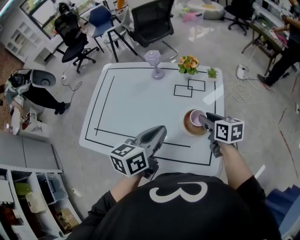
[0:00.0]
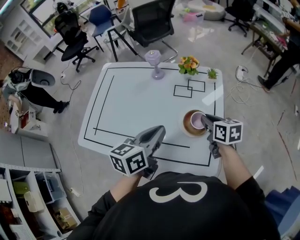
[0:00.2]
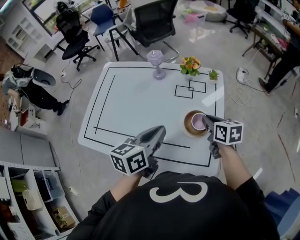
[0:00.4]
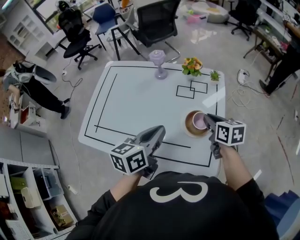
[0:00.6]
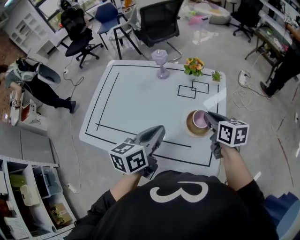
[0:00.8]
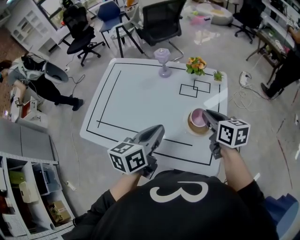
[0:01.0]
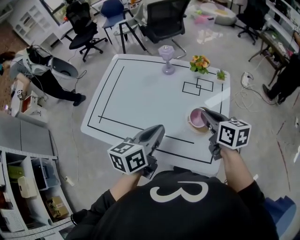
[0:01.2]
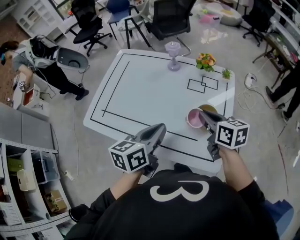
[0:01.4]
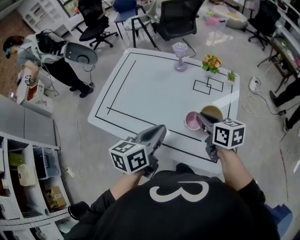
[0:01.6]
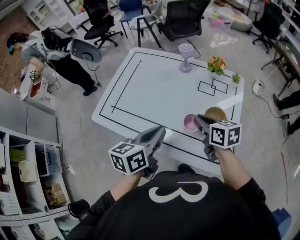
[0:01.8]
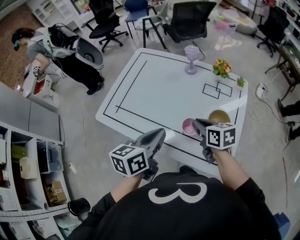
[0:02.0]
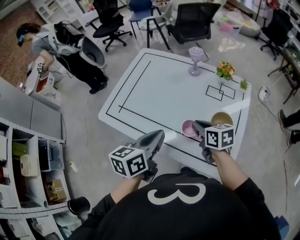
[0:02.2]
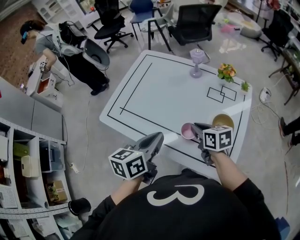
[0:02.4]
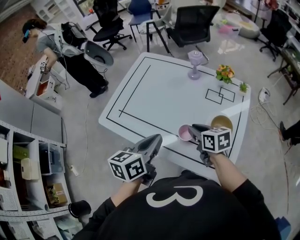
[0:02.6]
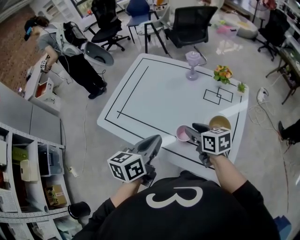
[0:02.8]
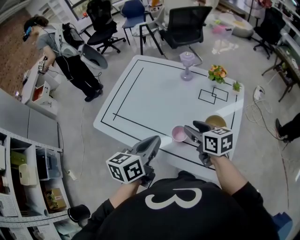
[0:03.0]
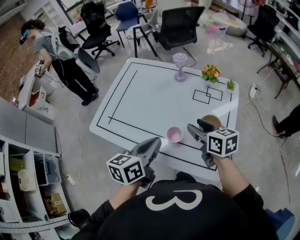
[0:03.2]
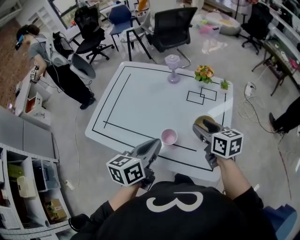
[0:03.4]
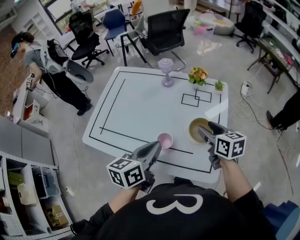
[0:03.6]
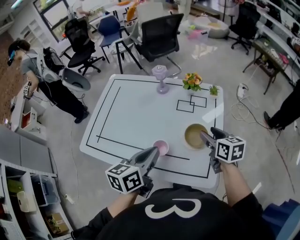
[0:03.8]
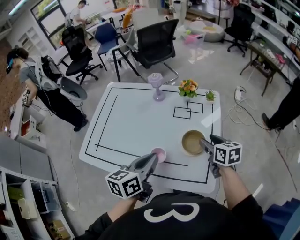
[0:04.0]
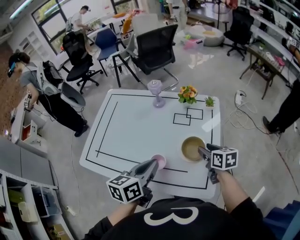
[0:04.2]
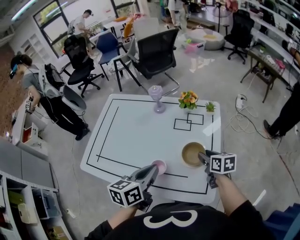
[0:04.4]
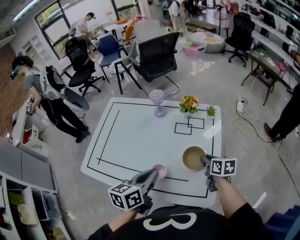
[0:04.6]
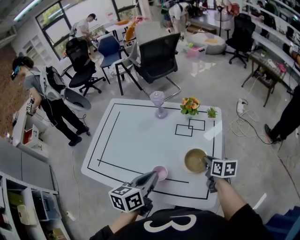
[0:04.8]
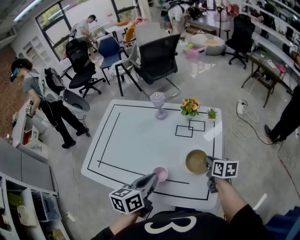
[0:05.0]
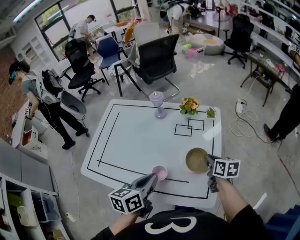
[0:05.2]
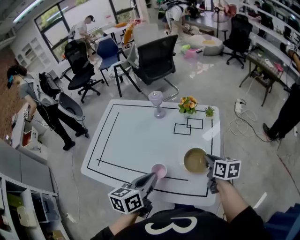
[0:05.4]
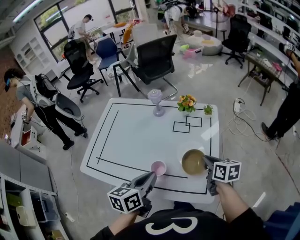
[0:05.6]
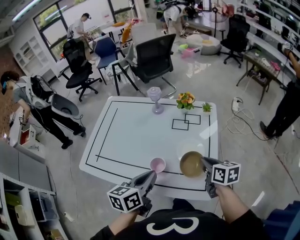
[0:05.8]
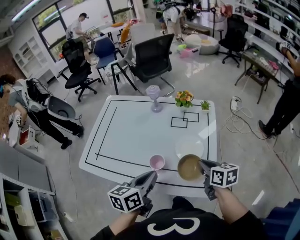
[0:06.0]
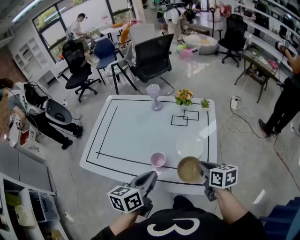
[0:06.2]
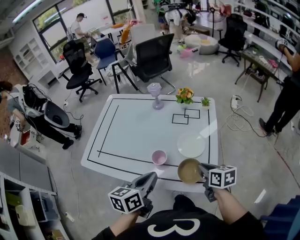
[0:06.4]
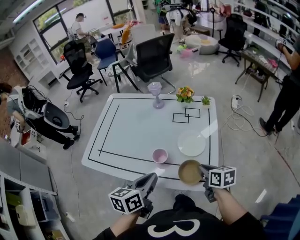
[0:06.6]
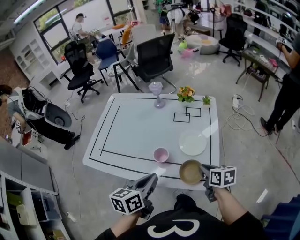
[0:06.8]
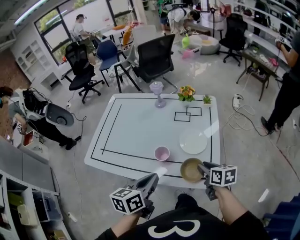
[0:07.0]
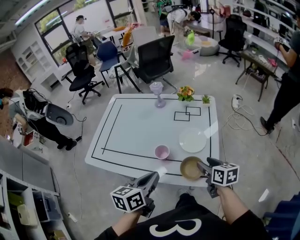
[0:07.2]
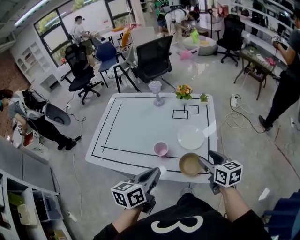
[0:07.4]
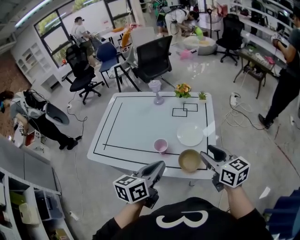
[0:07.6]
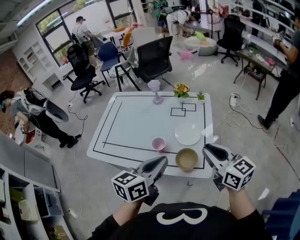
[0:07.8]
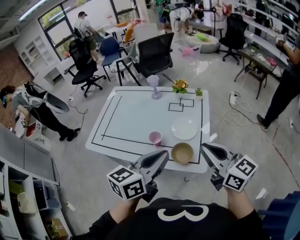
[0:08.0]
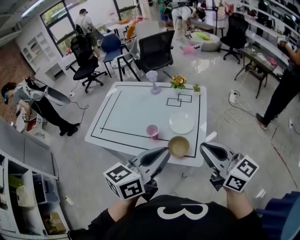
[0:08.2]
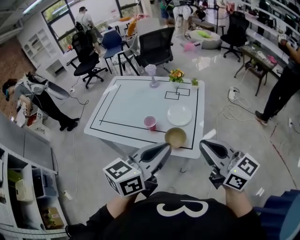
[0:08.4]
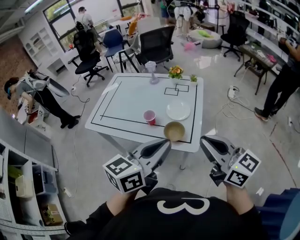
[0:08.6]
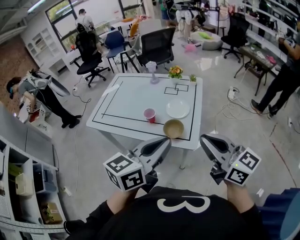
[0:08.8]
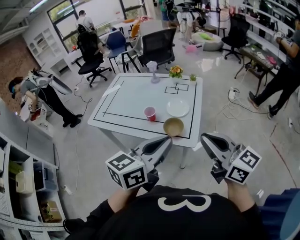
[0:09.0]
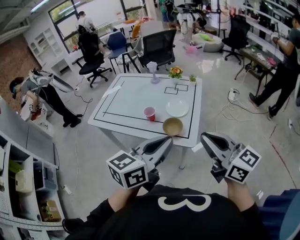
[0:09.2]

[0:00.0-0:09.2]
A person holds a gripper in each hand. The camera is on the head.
0:00.0 to 0:01.6: The right gripper moves to the left, approximately 10 cm, and closes, while the left gripper heads to the left, covering roughly 5 cm.
0:01.6 to 0:03.0: The right gripper travels to the left by roughly 5 cm, and opens its fingers.
0:03.0 to 0:04.6: The left gripper travels to the right by about 10 cm. Meanwhile the right gripper moves to the right and downward, approximately 20 cm, changes its angle by approximately 30 degrees, and closes.
0:04.6 to 0:06.2: The left gripper heads backward, covering about 5 cm; the right gripper heads backward, covering approximately 10 cm.
0:06.2 to 0:07.6: The right gripper goes approximately 10 cm upward and backward, swivels about 20 degrees, and opens; the left gripper ends up some 5 cm from where it was.
0:07.6 to 0:09.2: The right gripper shifts approximately 25 cm backward and upward, turns by approximately 20 degrees, and closes its fingers; the left gripper goes about 25 cm backward, to the right and upward.

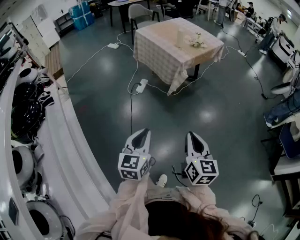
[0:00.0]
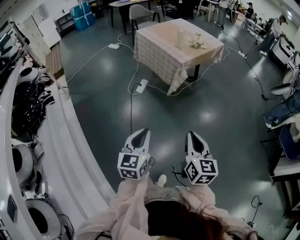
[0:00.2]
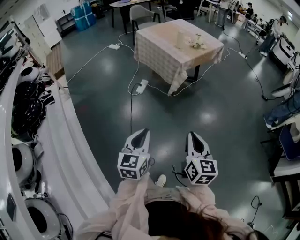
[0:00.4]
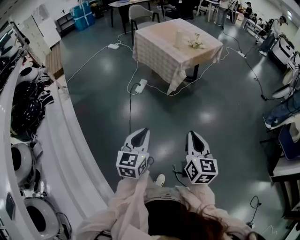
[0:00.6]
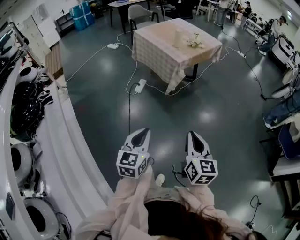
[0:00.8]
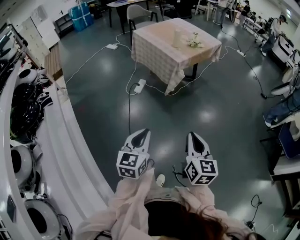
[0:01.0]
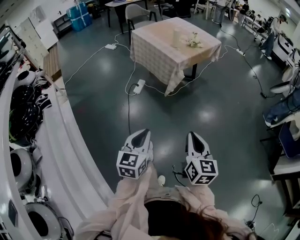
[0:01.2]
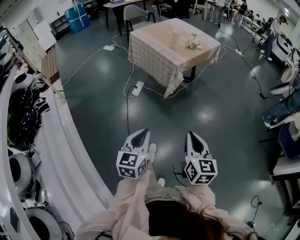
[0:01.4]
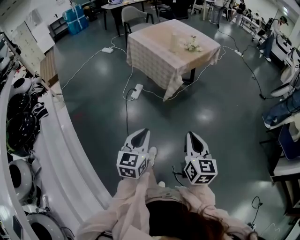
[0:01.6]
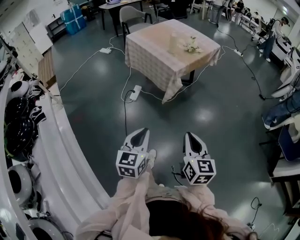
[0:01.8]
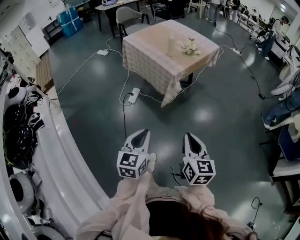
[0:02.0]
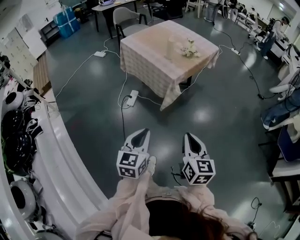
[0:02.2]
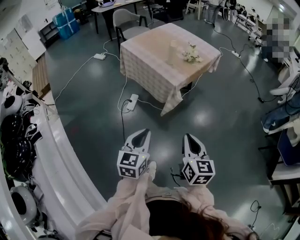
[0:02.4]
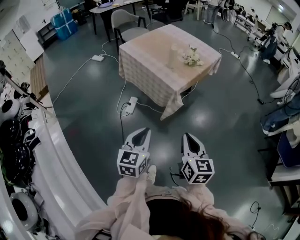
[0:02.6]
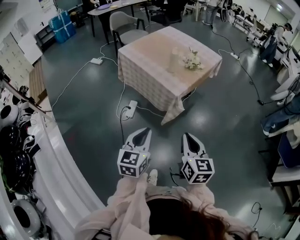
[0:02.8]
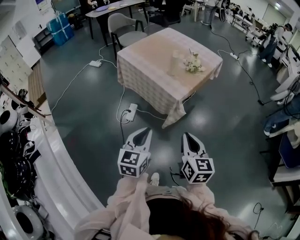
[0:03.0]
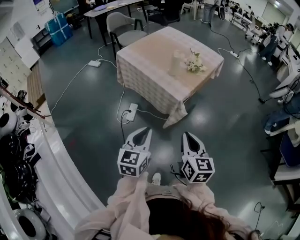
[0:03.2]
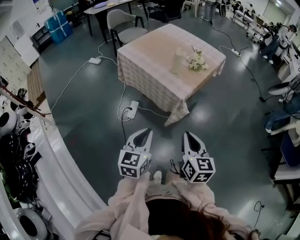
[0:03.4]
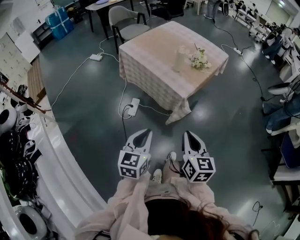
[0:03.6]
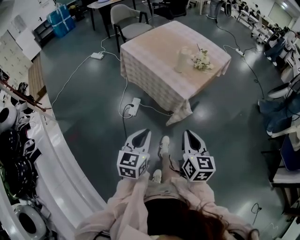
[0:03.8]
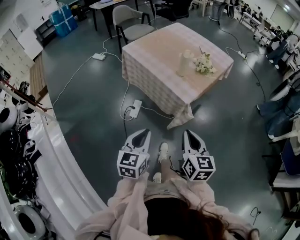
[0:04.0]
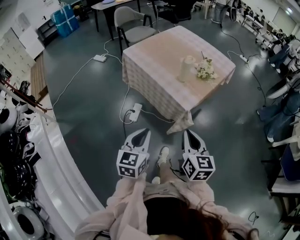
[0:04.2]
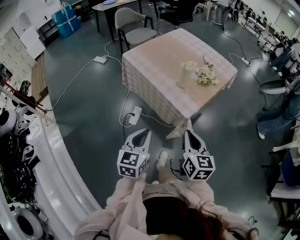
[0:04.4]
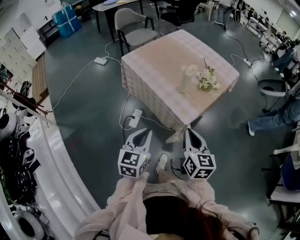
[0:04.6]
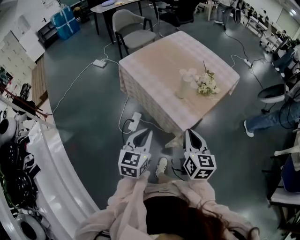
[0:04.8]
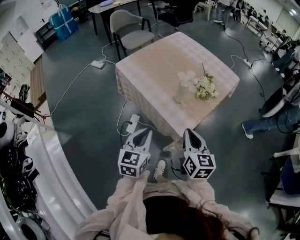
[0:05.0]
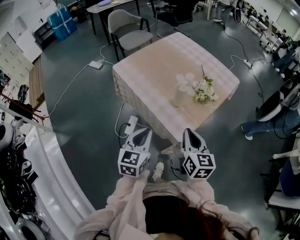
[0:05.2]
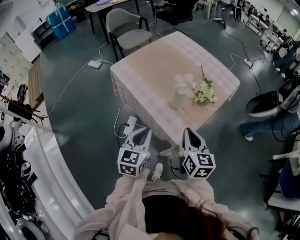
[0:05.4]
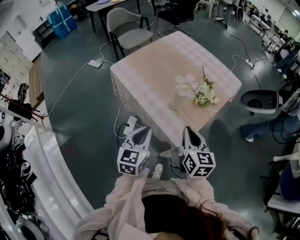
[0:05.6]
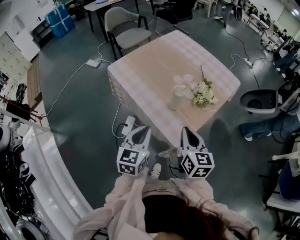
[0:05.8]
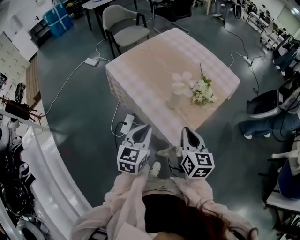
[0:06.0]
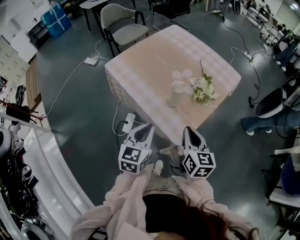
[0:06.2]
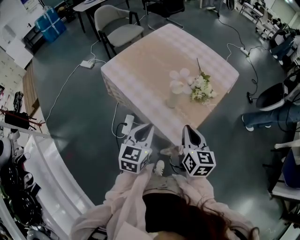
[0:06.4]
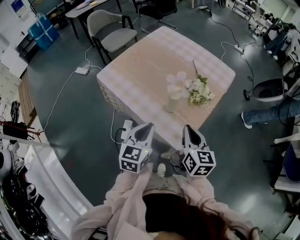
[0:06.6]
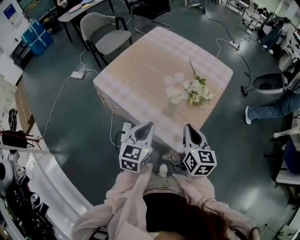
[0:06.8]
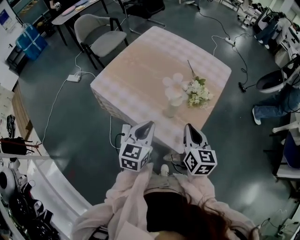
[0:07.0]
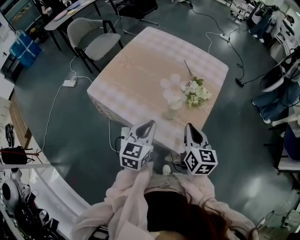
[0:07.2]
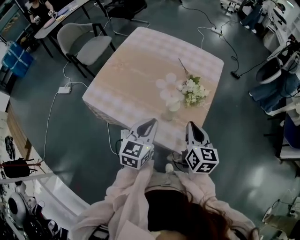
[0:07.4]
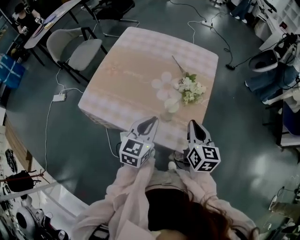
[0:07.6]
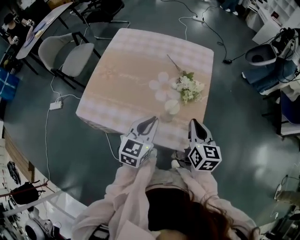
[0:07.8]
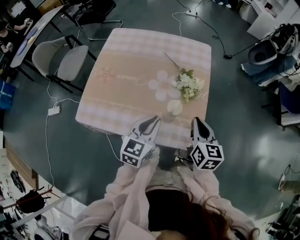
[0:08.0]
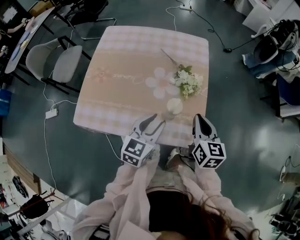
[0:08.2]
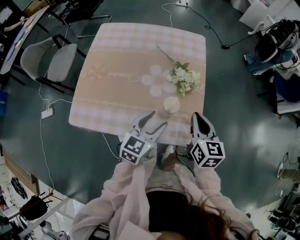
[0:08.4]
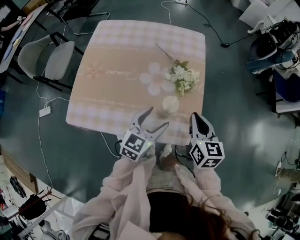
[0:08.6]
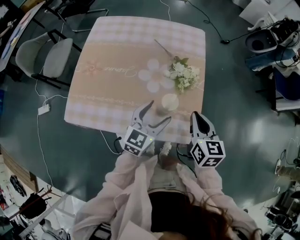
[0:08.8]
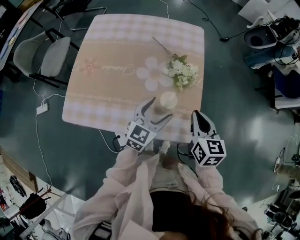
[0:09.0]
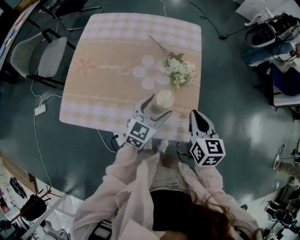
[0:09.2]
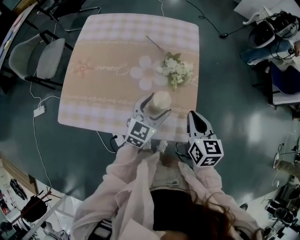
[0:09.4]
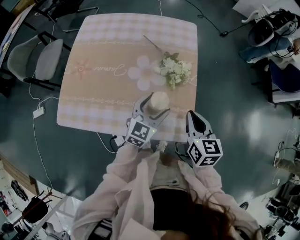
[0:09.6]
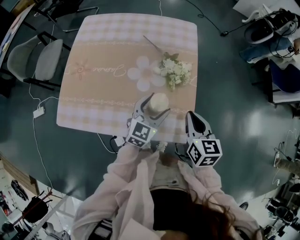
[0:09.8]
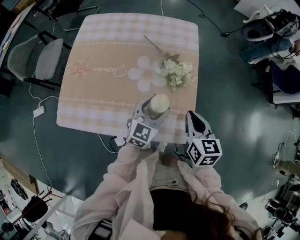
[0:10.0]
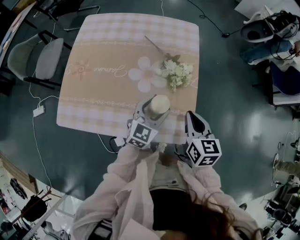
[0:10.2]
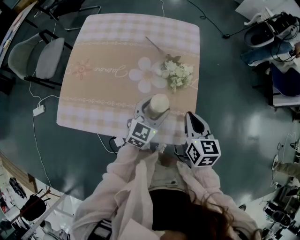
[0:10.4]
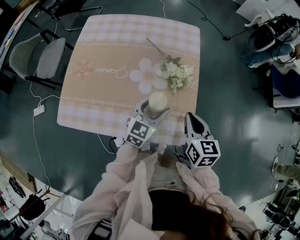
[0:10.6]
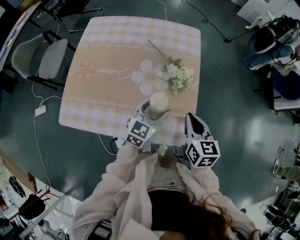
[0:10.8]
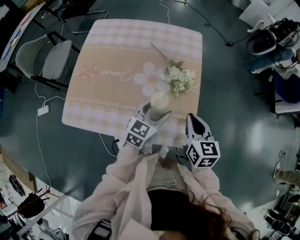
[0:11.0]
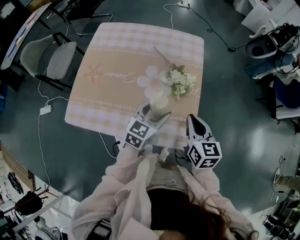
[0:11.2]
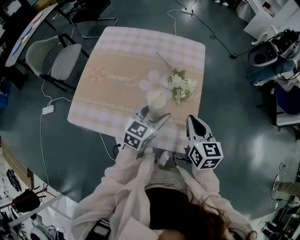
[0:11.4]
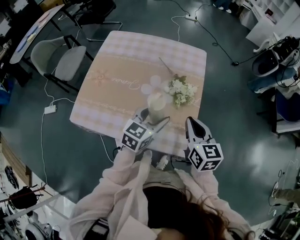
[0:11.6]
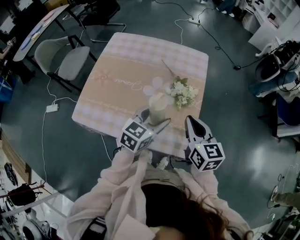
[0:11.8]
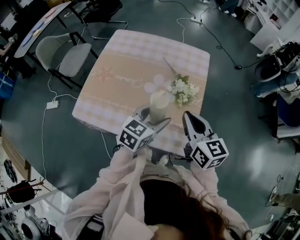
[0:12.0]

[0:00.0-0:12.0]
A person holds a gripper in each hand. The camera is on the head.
0:00.0 to 0:01.6: Both grippers move forward, roughly 10 cm.
0:01.6 to 0:03.0: Both grippers travel together forward, roughly 30 cm.
0:03.0 to 0:04.4: Both grippers move forward, about 15 cm.
0:04.4 to 0:06.0: The two grippers go about 20 cm forward.
0:06.0 to 0:07.6: The right gripper moves some 10 cm, and turns by approximately 30 degrees; the left gripper ends up approximately 15 cm from where it was, and rotates roughly 30 degrees.
0:07.6 to 0:09.0: The left gripper shifts approximately 10 cm downward and forward, turns by roughly 20 degrees, and opens.
0:09.0 to 0:10.4: The grippers stay close to where they were, moving slightly.
0:10.4 to 0:12.0: Both grippers move upward, some 10 cm. The right gripper rotates about 20 degrees.

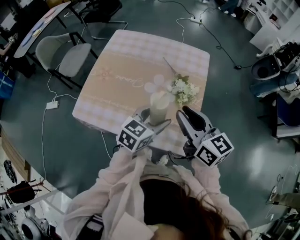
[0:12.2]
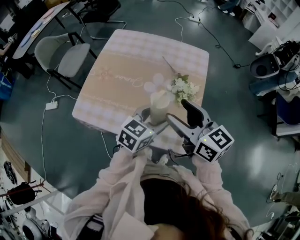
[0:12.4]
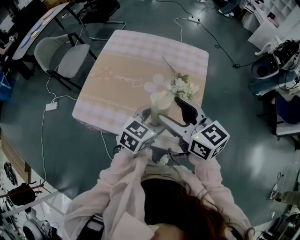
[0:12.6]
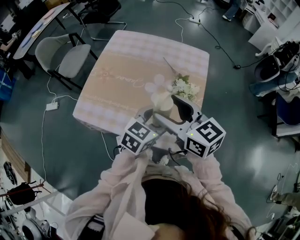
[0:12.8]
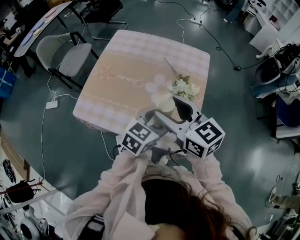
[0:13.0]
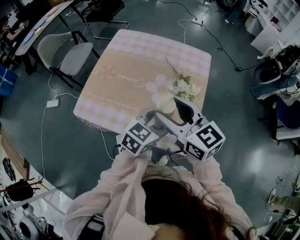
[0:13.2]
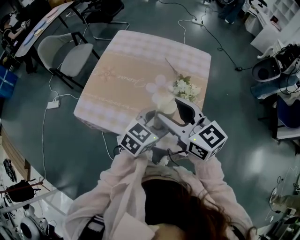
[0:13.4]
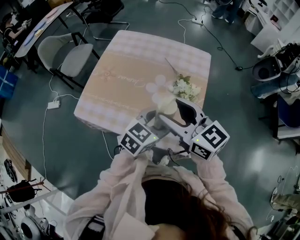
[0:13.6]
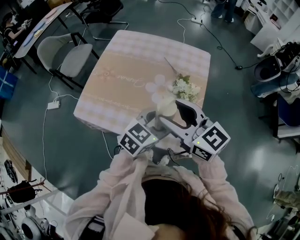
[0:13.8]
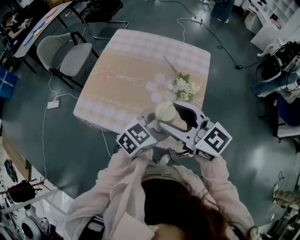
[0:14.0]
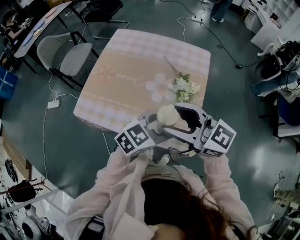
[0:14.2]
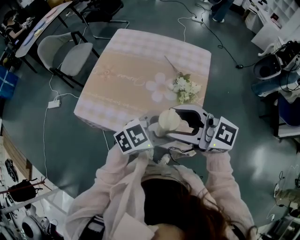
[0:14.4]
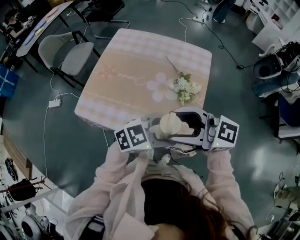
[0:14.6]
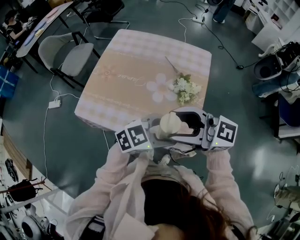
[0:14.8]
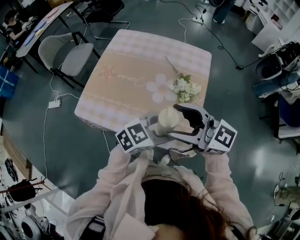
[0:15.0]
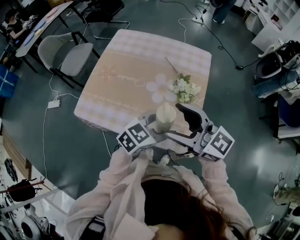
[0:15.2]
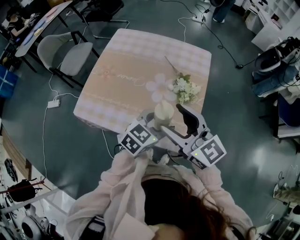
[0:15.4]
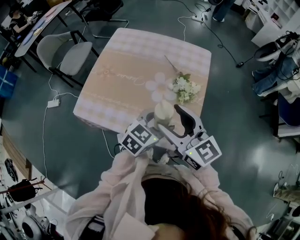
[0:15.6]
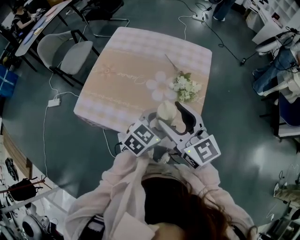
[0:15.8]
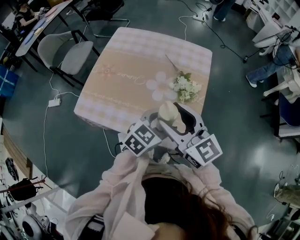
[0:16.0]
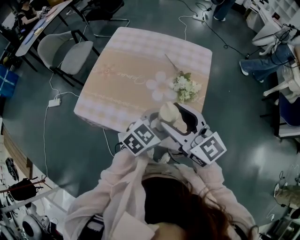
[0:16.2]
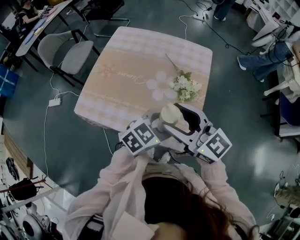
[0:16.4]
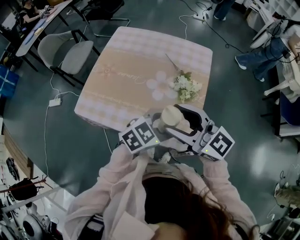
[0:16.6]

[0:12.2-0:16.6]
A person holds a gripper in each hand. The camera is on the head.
0:12.2 to 0:13.6: The right gripper travels to the left by roughly 5 cm, and opens up.
